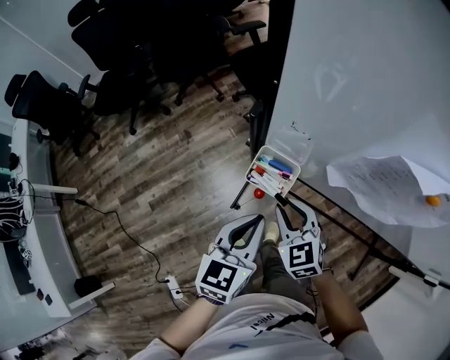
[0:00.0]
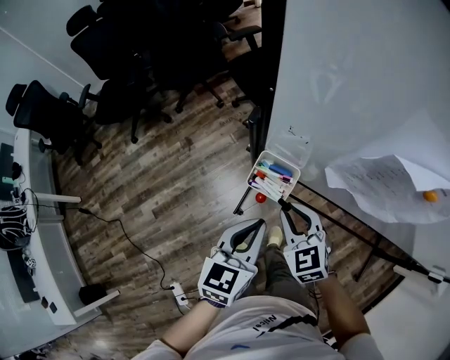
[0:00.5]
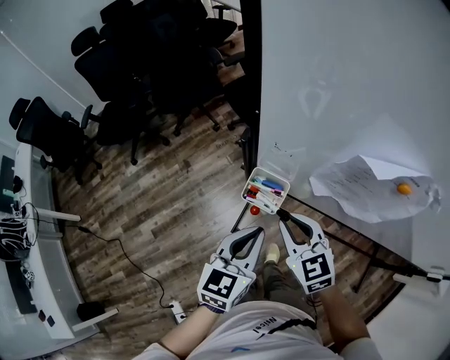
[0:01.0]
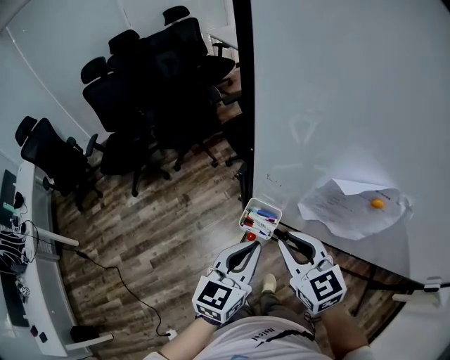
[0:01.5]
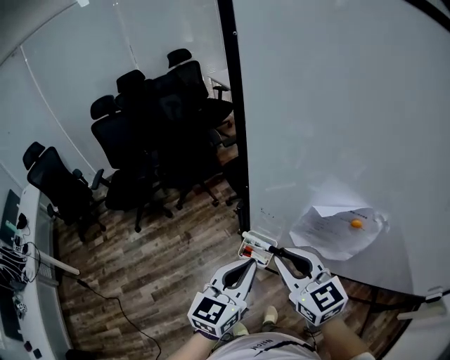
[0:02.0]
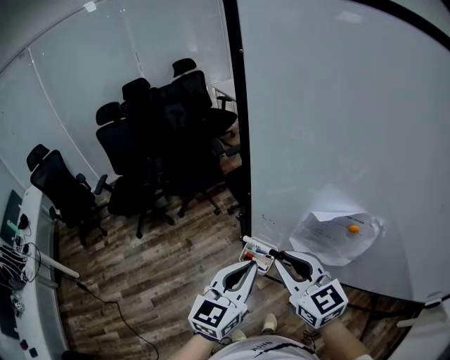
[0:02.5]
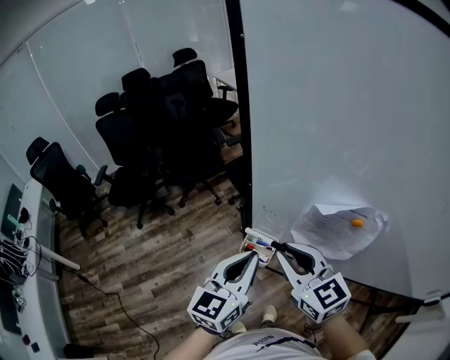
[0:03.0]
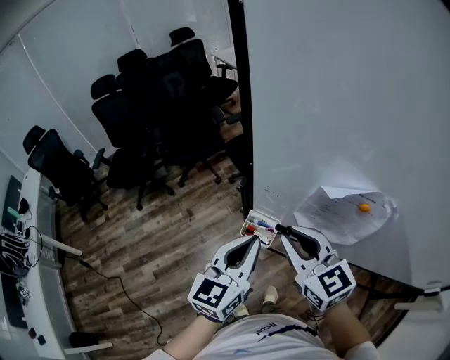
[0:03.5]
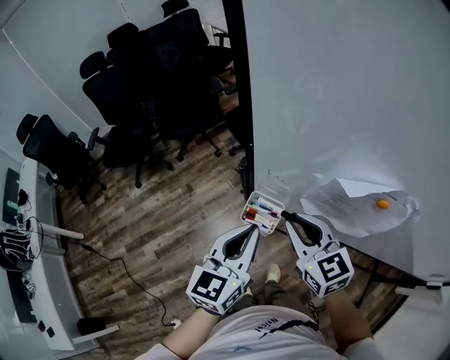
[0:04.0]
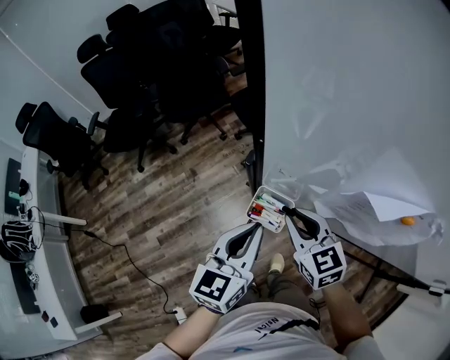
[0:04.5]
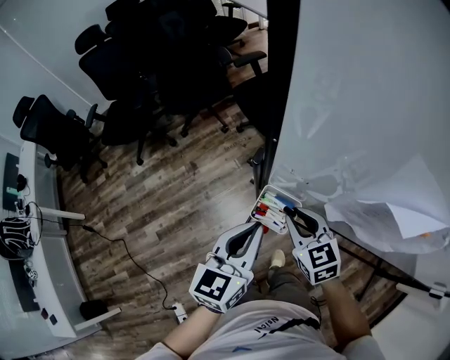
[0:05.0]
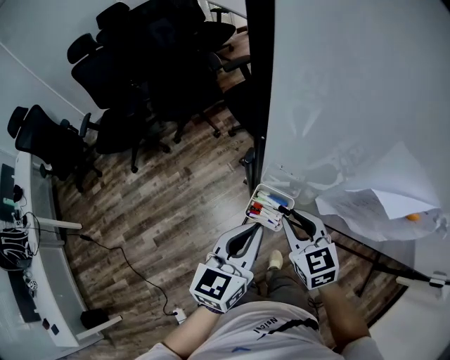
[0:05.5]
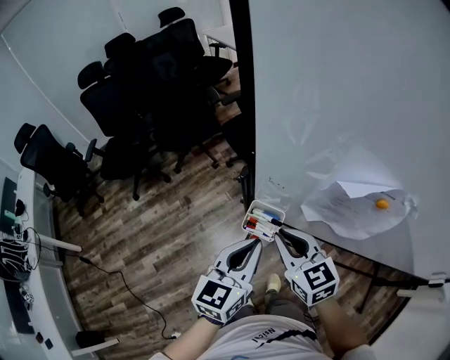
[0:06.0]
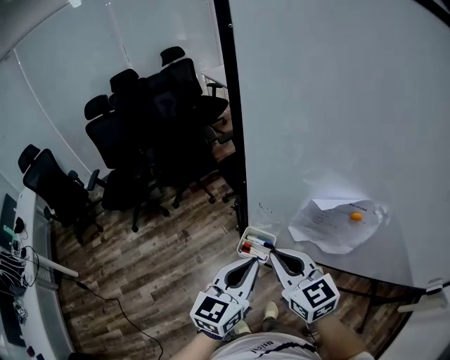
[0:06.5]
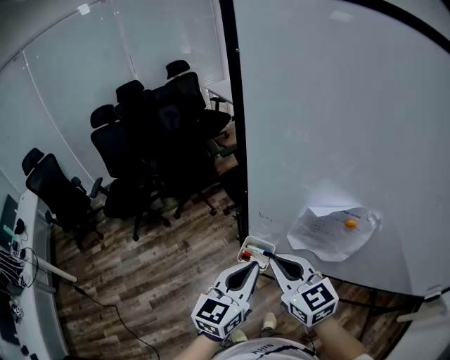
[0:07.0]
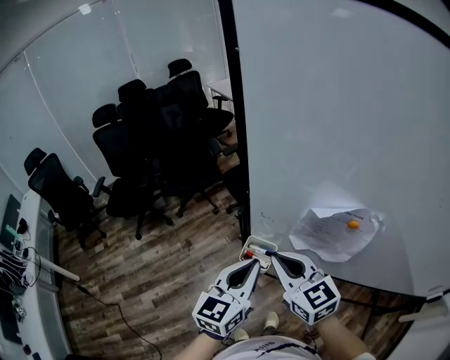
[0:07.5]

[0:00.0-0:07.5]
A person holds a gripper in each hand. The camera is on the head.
0:00.0 to 0:02.0: The right gripper goes some 25 cm upward, and changes its angle by approximately 30 degrees; the left gripper travels upward by some 15 cm.
0:02.0 to 0:04.0: The right gripper shifts some 5 cm downward.
0:04.0 to 0:05.5: The left gripper shifts some 5 cm downward, while the right gripper shifts roughly 10 cm downward.
0:05.5 to 0:07.5: The left gripper travels upward by about 10 cm. The right gripper goes some 20 cm upward.

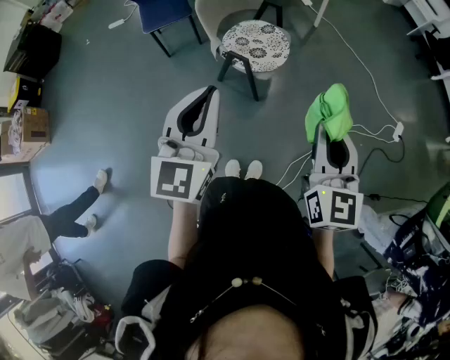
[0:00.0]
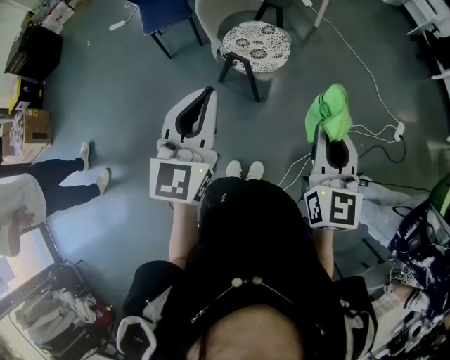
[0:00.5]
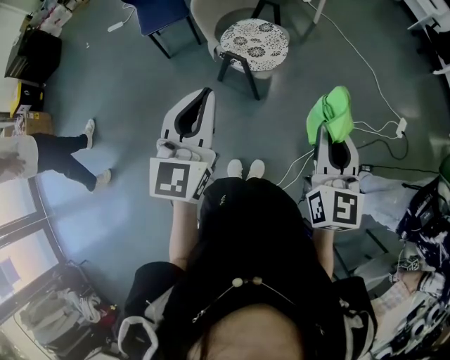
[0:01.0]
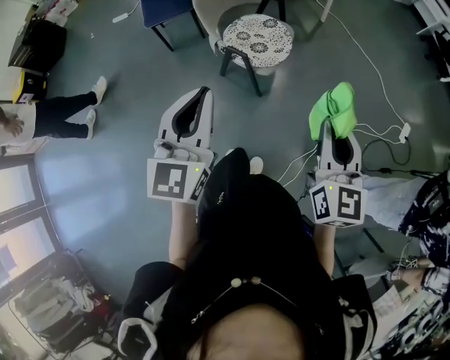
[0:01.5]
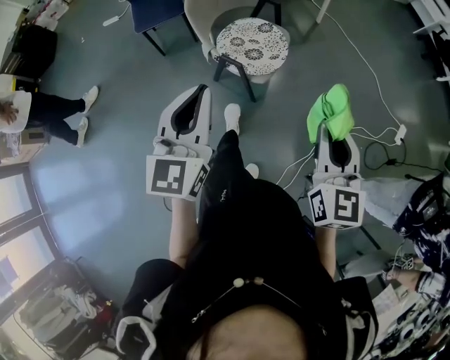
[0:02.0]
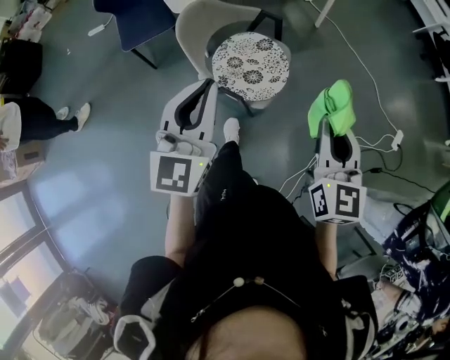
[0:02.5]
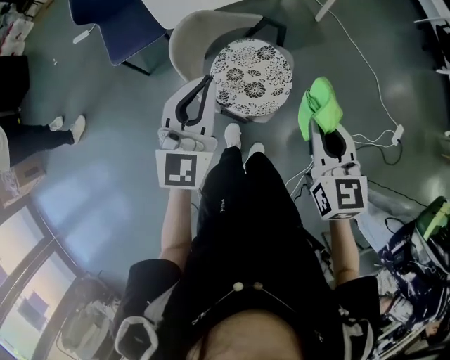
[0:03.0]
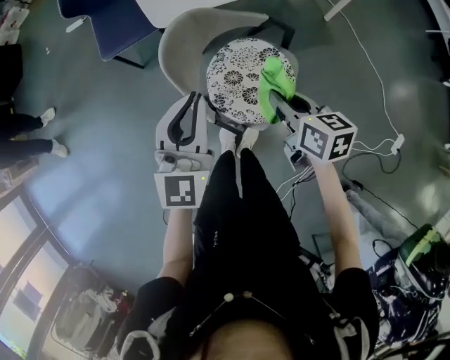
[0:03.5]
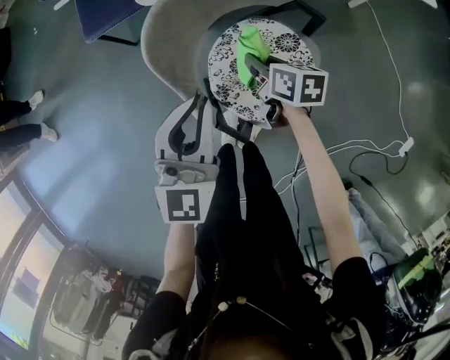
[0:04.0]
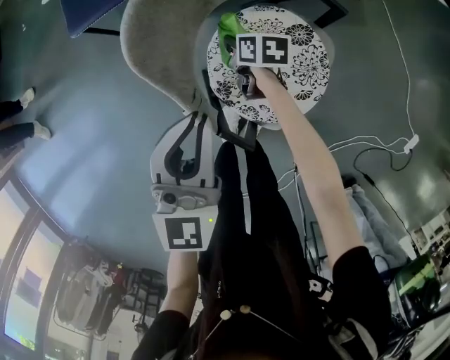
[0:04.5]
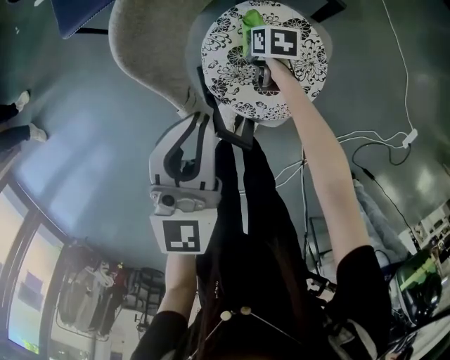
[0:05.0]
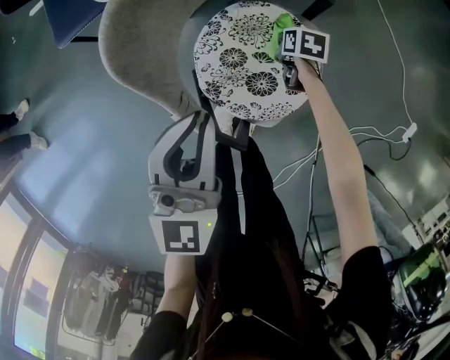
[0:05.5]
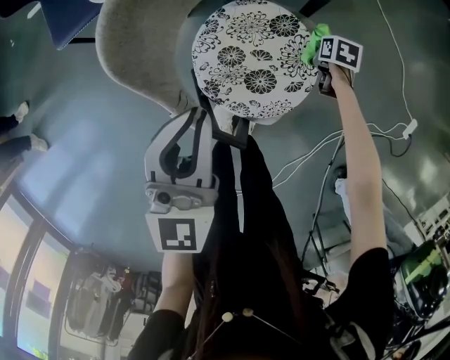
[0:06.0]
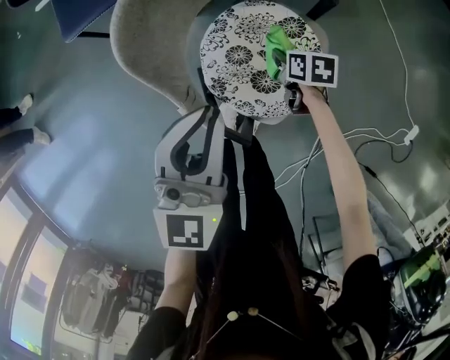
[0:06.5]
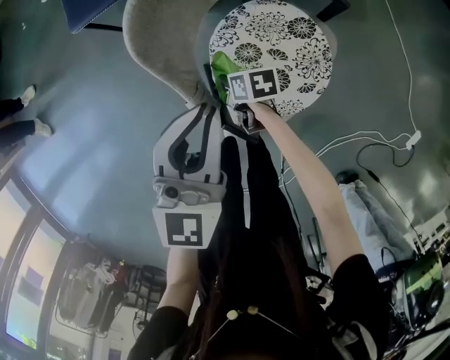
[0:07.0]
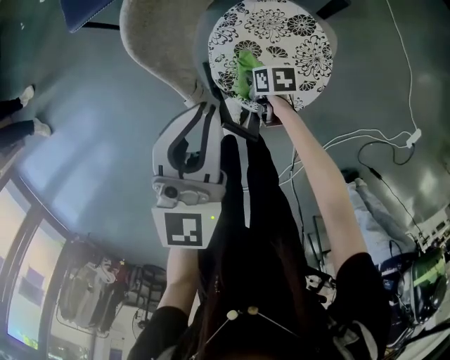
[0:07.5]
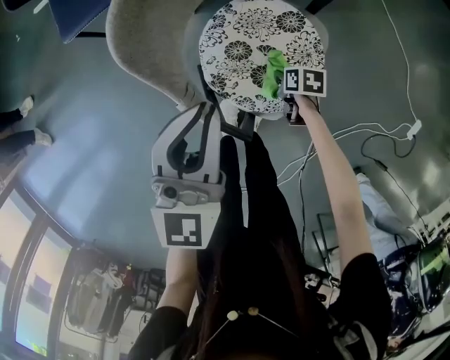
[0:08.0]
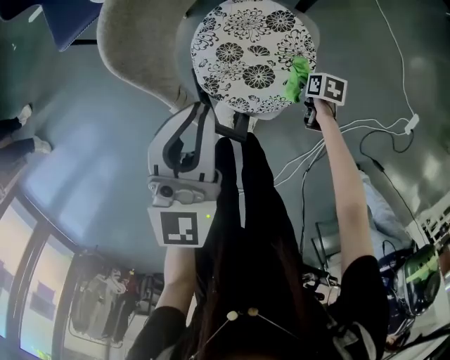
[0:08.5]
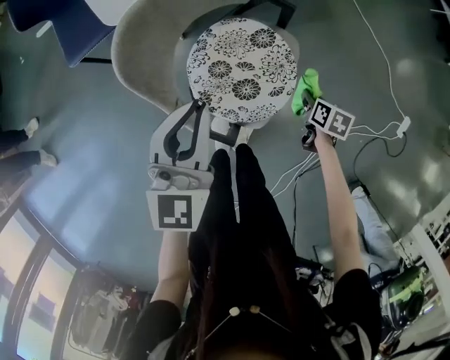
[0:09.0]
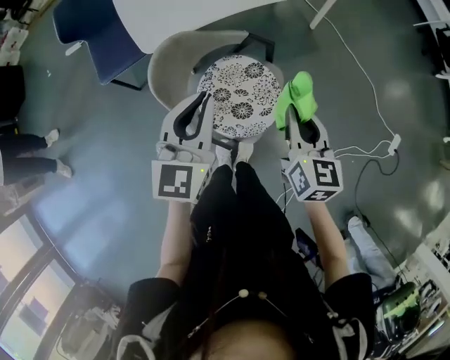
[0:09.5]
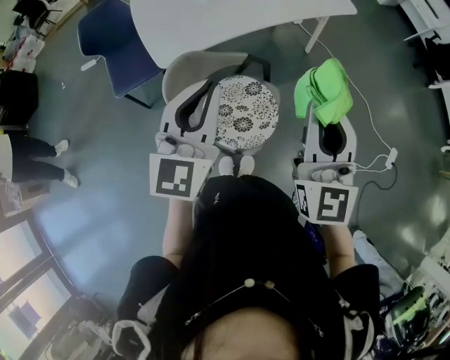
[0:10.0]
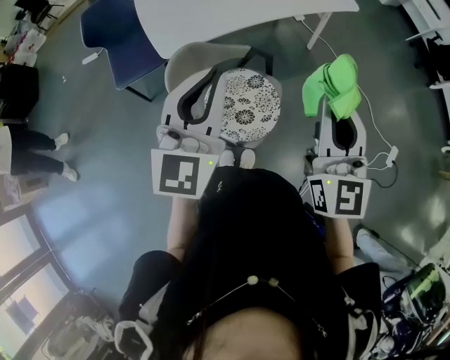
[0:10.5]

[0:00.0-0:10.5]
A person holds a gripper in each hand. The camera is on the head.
0:00.0 to 0:02.0: Both grippers travel together forward, roughly 10 cm.
0:02.0 to 0:04.0: Both grippers are carried some 50 cm. The right gripper tilts its fingers approximately 30 degrees downward.
0:04.0 to 0:06.5: The right gripper heads downward, covering some 15 cm.
0:06.5 to 0:08.5: The right gripper changes place by approximately 20 cm, and changes its angle by approximately 20 degrees.
0:08.5 to 0:10.5: The right gripper heads upward, covering roughly 70 cm, and points its fingers about 80 degrees further upward. The left gripper moves upward, approximately 35 cm.

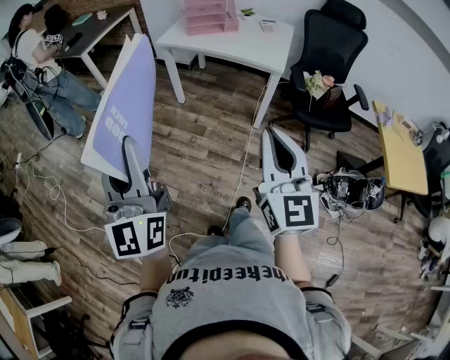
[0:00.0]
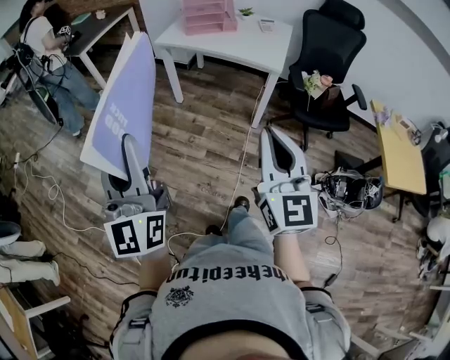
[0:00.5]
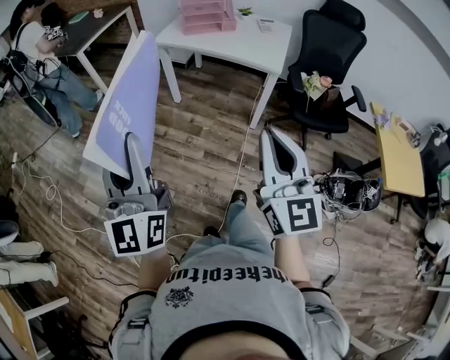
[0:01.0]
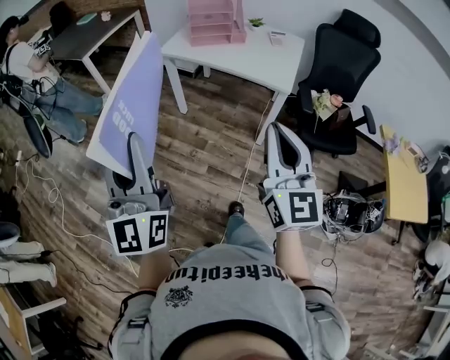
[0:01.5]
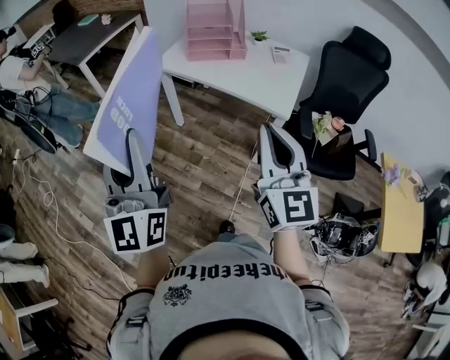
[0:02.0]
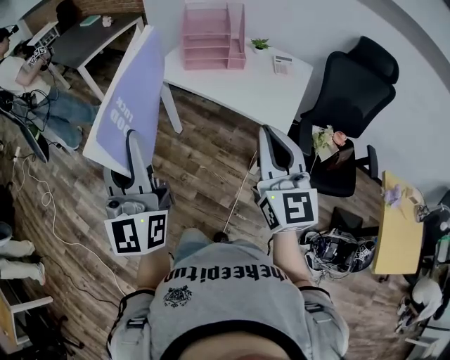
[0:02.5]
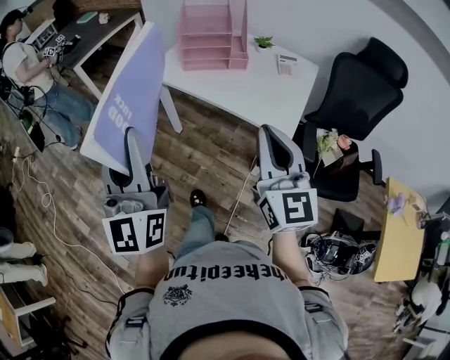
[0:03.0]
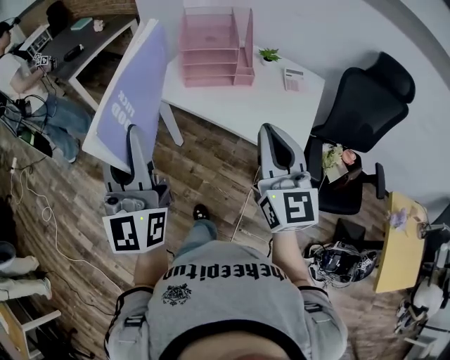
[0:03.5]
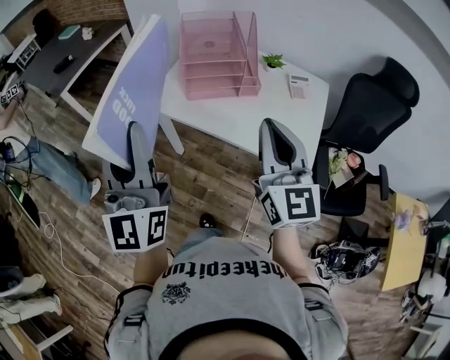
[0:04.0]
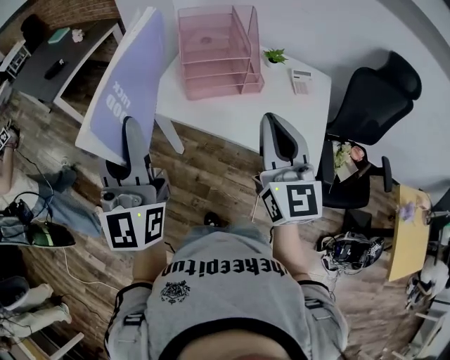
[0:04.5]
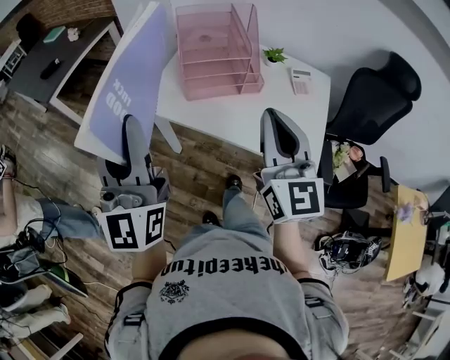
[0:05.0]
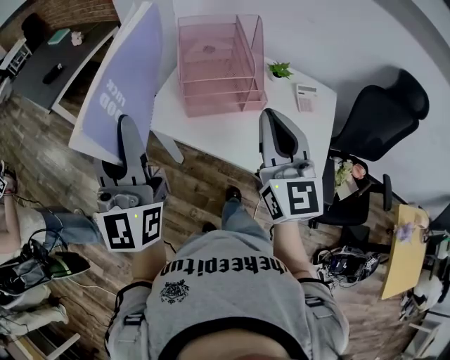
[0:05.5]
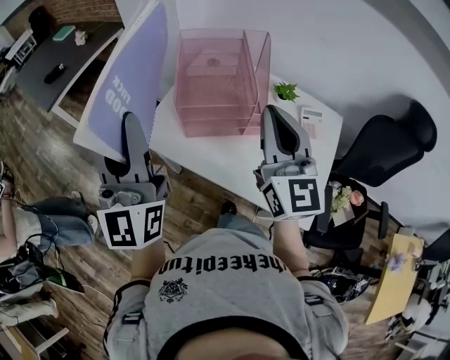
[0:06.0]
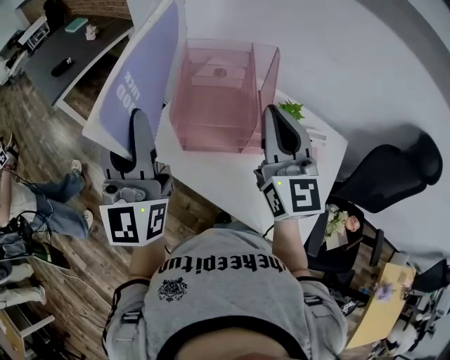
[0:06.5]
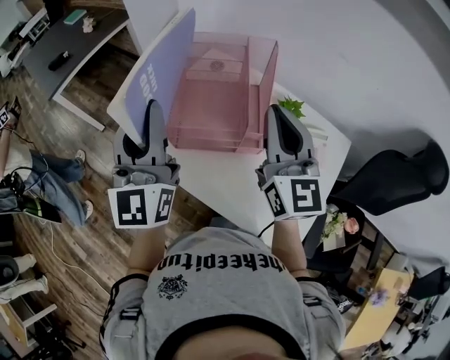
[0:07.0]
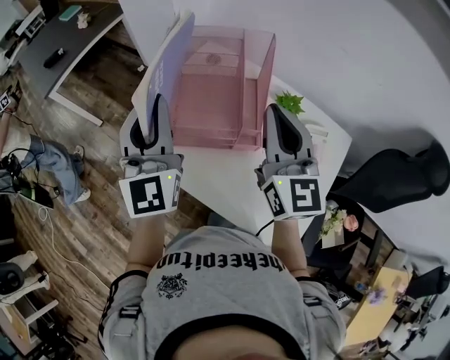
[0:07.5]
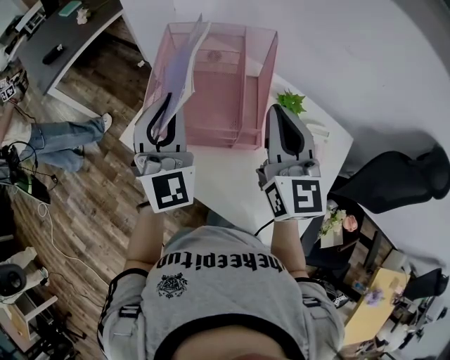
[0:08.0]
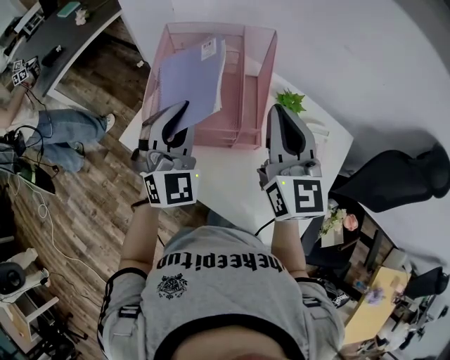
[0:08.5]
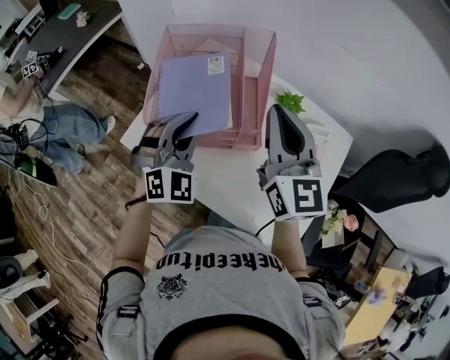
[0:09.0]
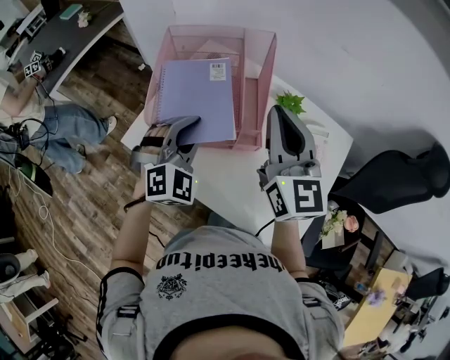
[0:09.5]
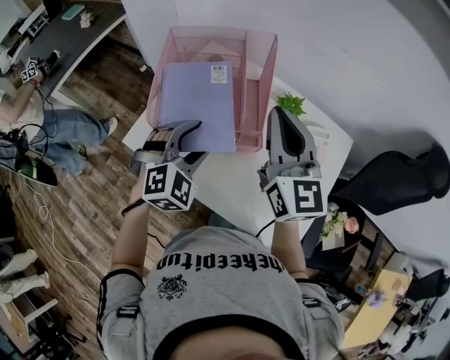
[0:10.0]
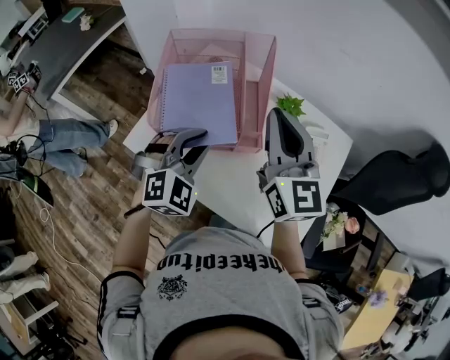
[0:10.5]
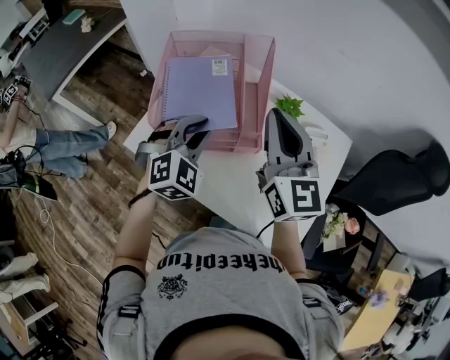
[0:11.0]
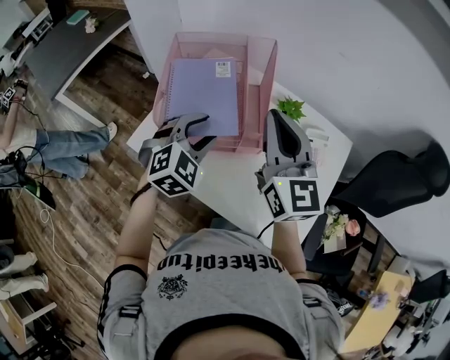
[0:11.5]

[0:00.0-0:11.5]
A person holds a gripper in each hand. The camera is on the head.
0:00.0 to 0:02.0: The right gripper travels forward by about 25 cm. The left gripper goes approximately 25 cm forward and to the right.
0:02.0 to 0:04.0: Both grippers travel together forward, about 35 cm.
0:04.0 to 0:06.0: The grippers both shift forward by about 20 cm.
0:06.0 to 0:07.5: The right gripper shifts some 15 cm forward and to the right; the left gripper travels forward, to the right and downward by about 20 cm, and swivels roughly 20 degrees.
0:07.5 to 0:09.5: The left gripper heads downward and to the right, covering approximately 15 cm, and tilts its fingers some 40 degrees downward.
0:09.5 to 0:11.5: The left gripper opens up.
